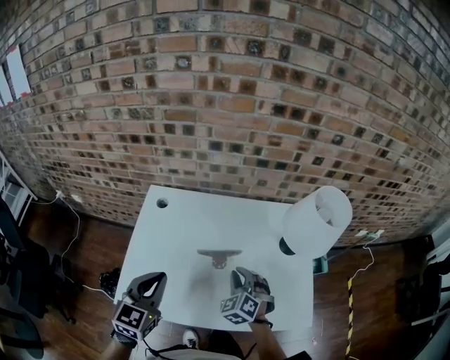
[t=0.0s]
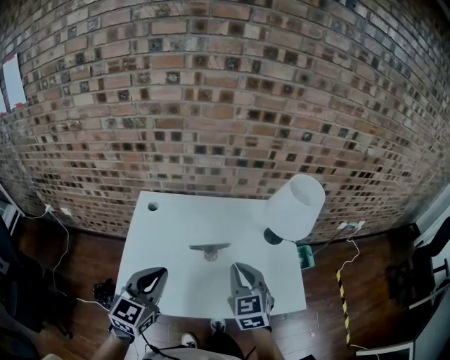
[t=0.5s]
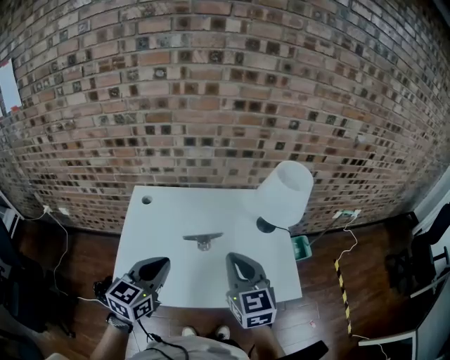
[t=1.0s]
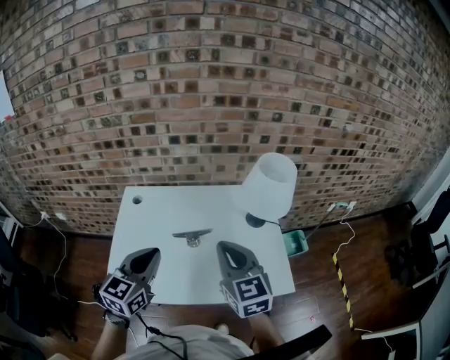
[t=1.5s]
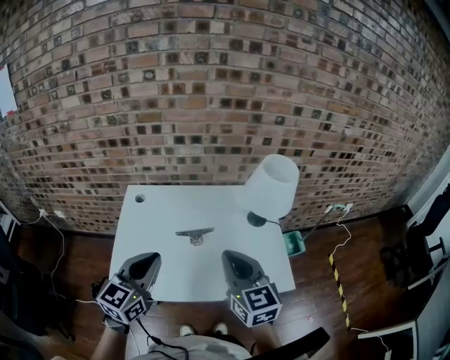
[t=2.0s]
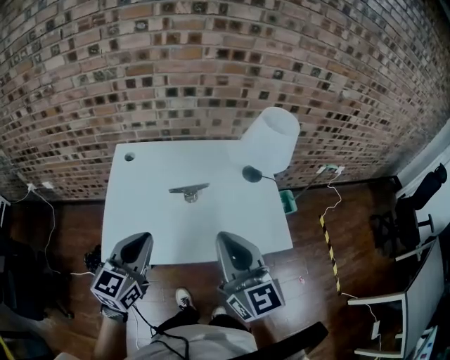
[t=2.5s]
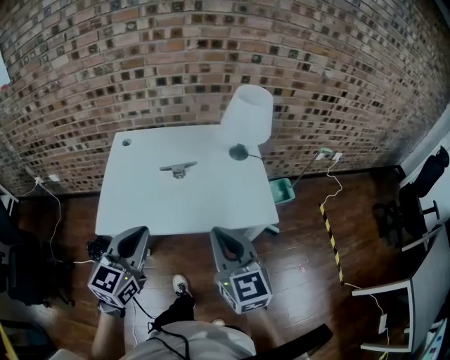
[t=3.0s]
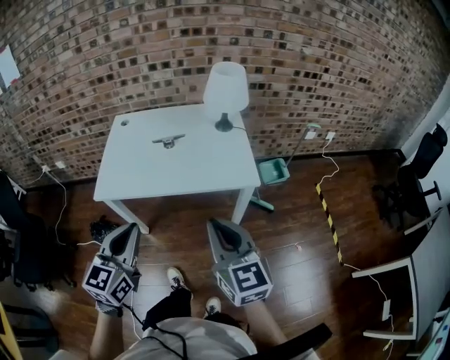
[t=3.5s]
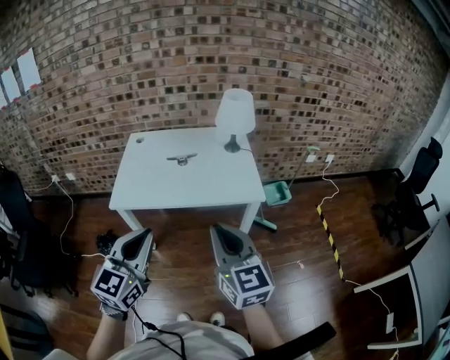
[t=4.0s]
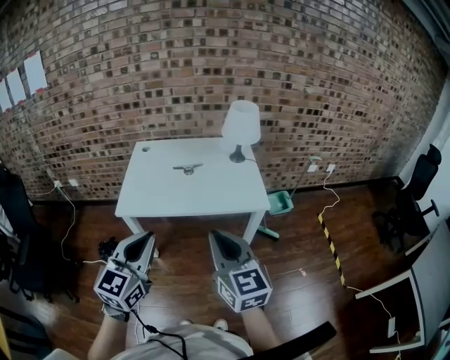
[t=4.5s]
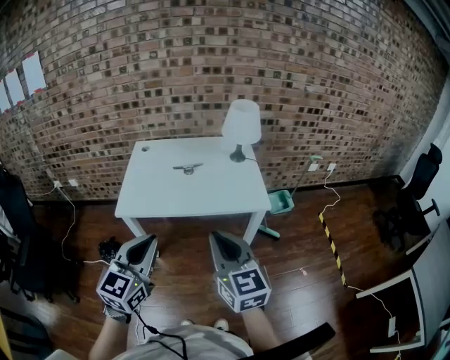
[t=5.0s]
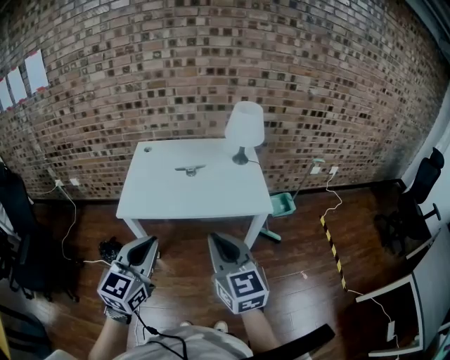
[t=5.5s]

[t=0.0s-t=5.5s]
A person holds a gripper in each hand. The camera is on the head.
t=0.0s to t=2.0s: The left gripper is displaced upward, backward and to the right by about 10 cm. The right gripper moves upward and backward, approximately 25 cm, and tilts its fingers some 30 degrees upward.
t=2.0s to t=3.5s: Both grippers travel together backward, approximately 30 cm.
t=3.5s to t=5.5s: The right gripper moves to the left, some 10 cm. The left gripper changes place by approximately 5 cm.

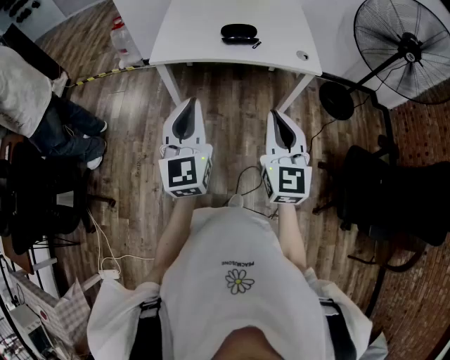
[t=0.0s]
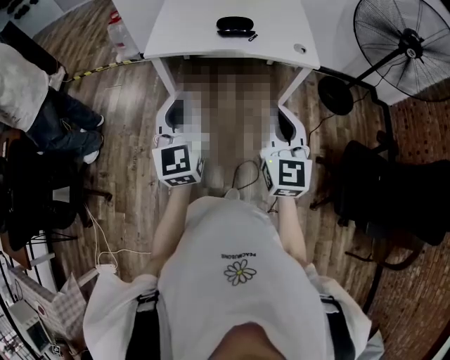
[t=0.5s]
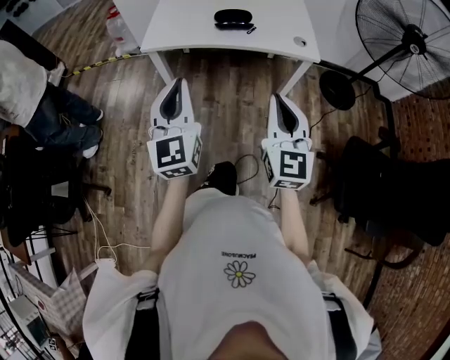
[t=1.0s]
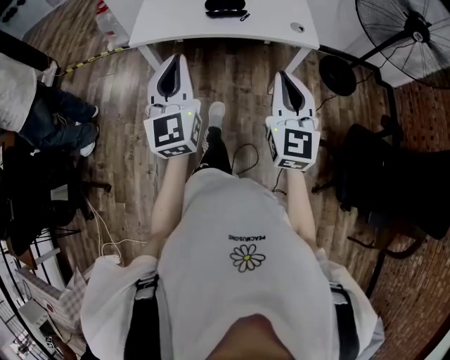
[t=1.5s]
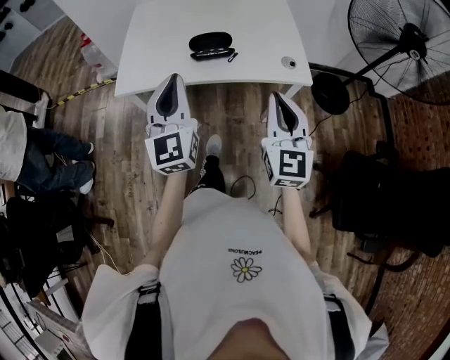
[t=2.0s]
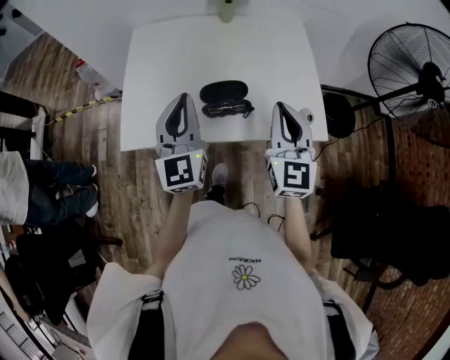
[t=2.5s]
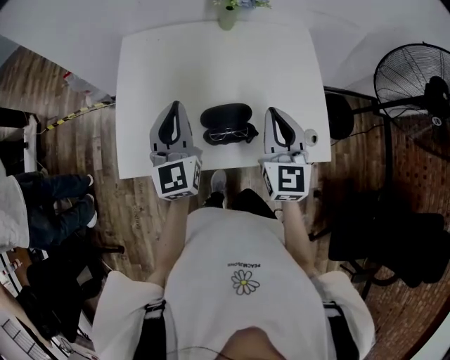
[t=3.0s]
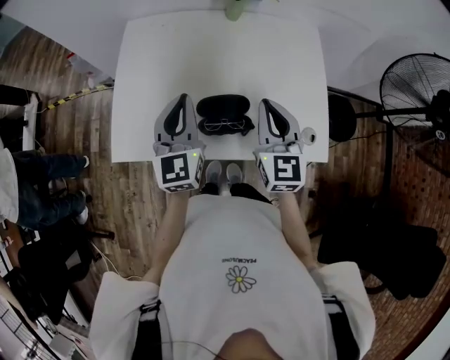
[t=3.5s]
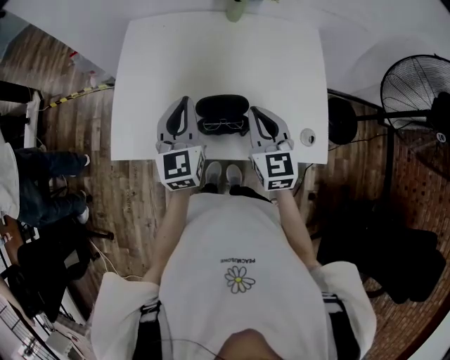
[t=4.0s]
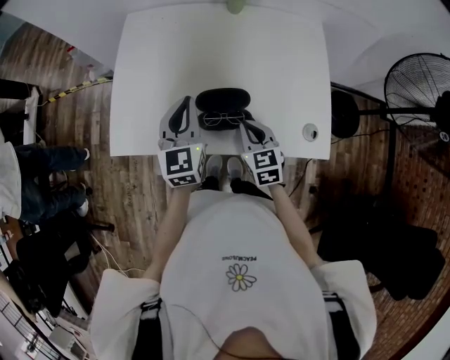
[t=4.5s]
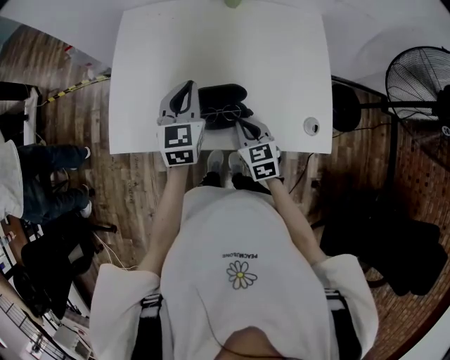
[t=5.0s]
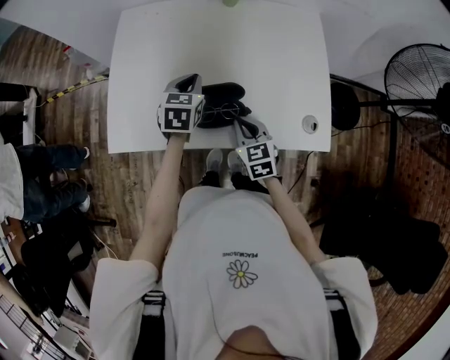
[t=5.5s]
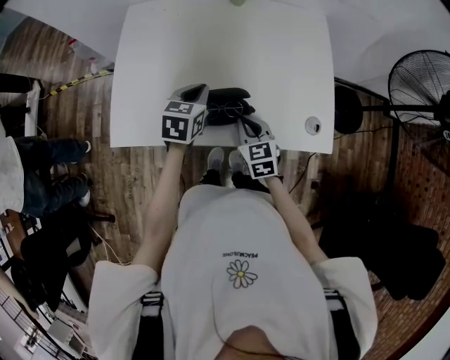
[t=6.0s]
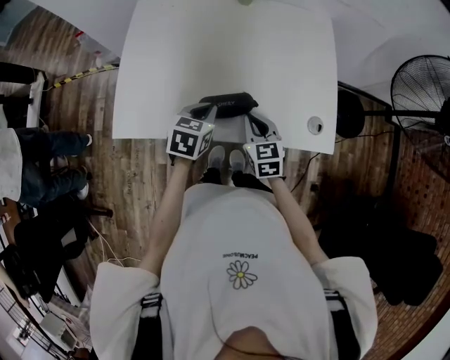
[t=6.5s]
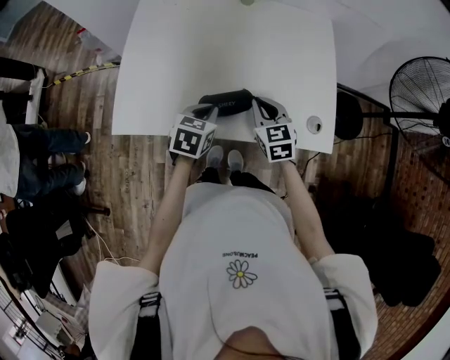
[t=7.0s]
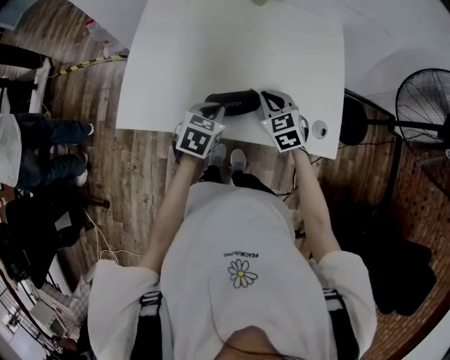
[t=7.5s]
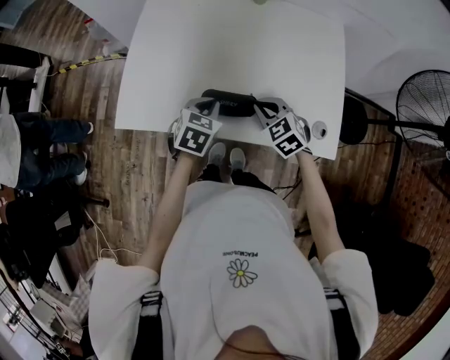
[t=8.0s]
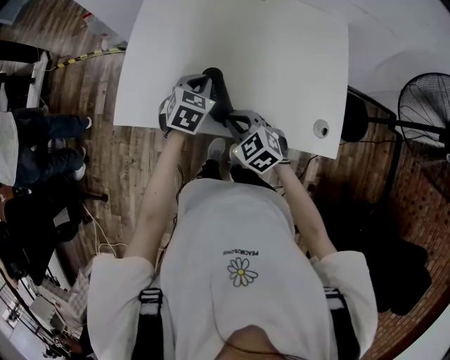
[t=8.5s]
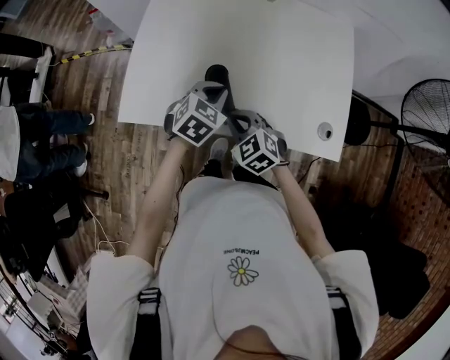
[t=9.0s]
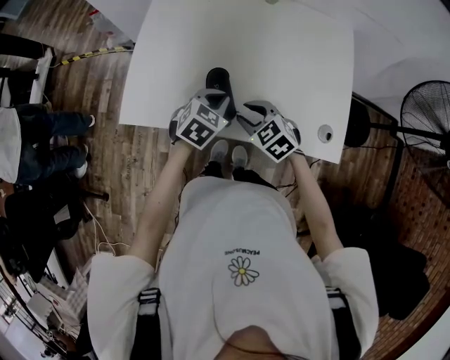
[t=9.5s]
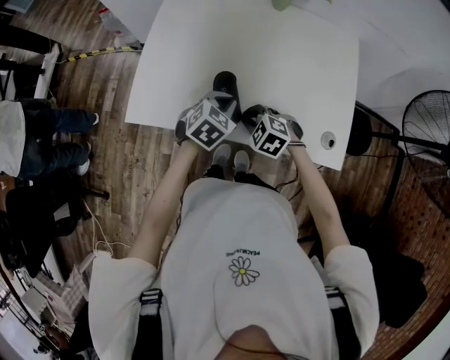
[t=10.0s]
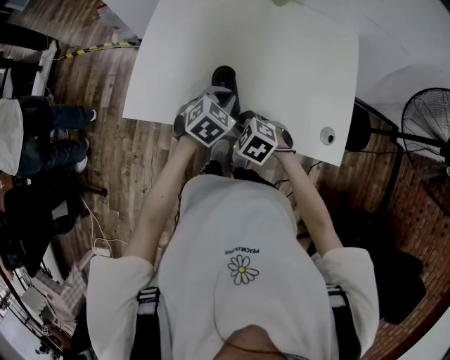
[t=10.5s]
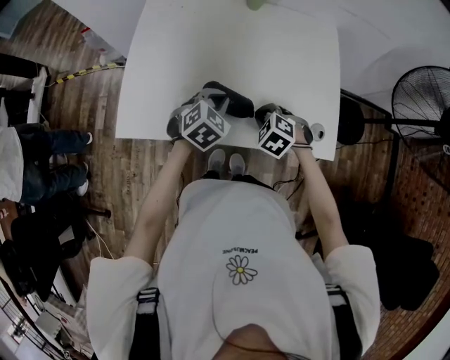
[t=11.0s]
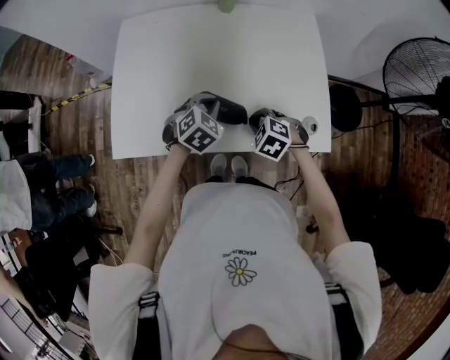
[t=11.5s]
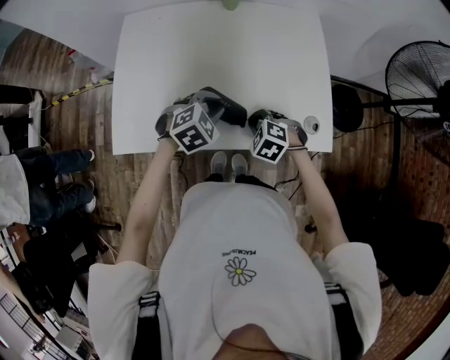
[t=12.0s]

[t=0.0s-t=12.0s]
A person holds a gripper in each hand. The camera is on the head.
t=0.0s to t=2.0s: The right gripper shifts about 25 cm forward and to the right. The left gripper moves forward, roughly 25 cm.
t=2.0s to t=4.0s: Both grippers move forward, approximately 30 cm. The right gripper changes its angle by about 20 degrees.
t=4.0s to t=6.0s: The two grippers go about 10 cm downward. The left gripper angles its fingers downward, by roughly 30 degrees.
t=6.0s to t=8.0s: The left gripper is displaced backward by about 5 cm; the right gripper turns by some 30 degrees.
t=8.0s to t=10.0s: The right gripper moves to the left, some 10 cm, changes its angle by roughly 30 degrees, and opens, then closes again.
t=10.0s to t=12.0s: The left gripper turns by about 30 degrees, while the right gripper shifts roughly 10 cm to the right.

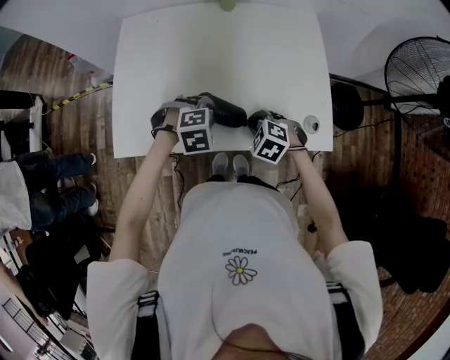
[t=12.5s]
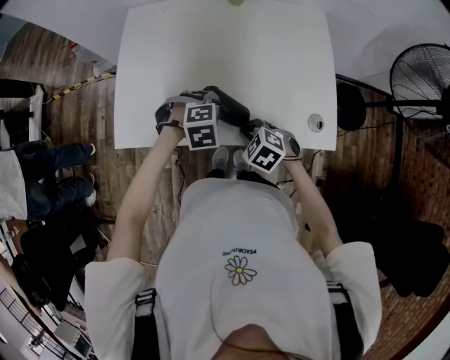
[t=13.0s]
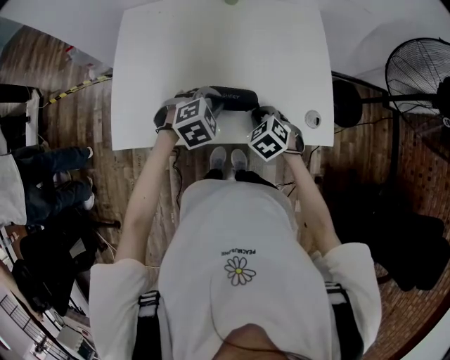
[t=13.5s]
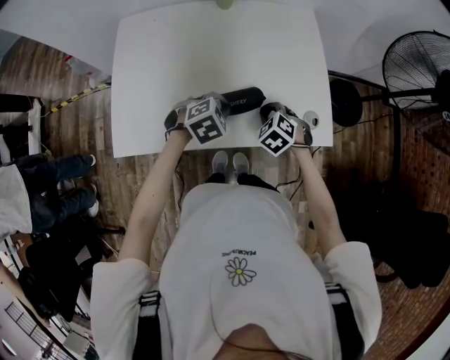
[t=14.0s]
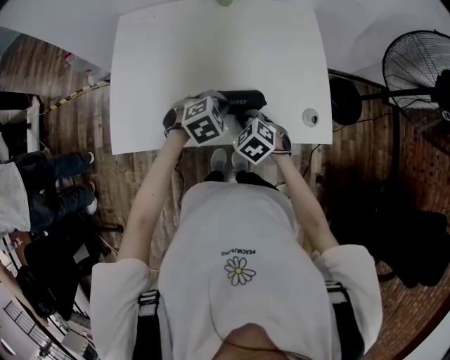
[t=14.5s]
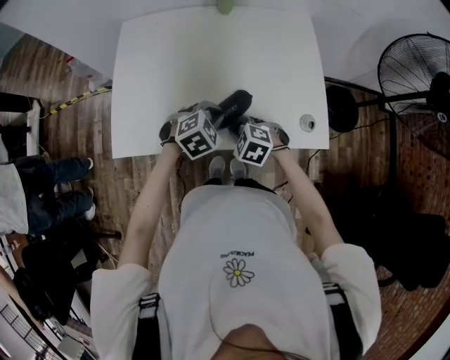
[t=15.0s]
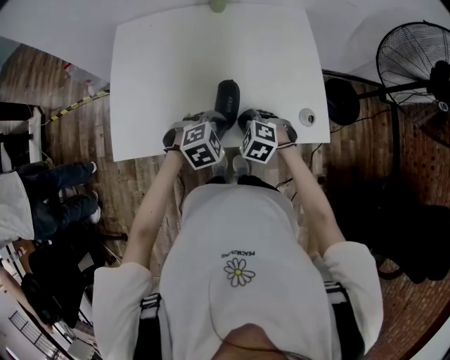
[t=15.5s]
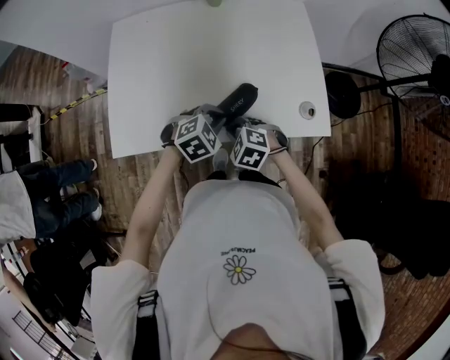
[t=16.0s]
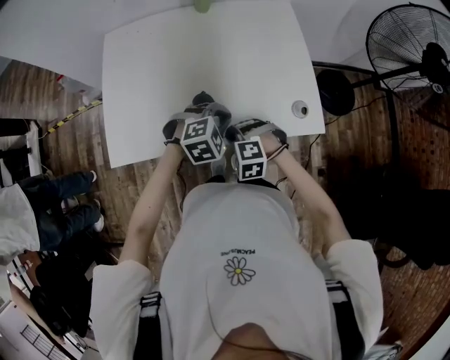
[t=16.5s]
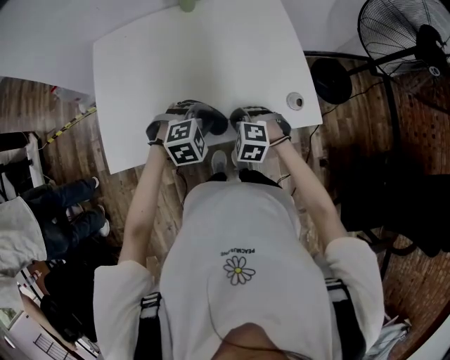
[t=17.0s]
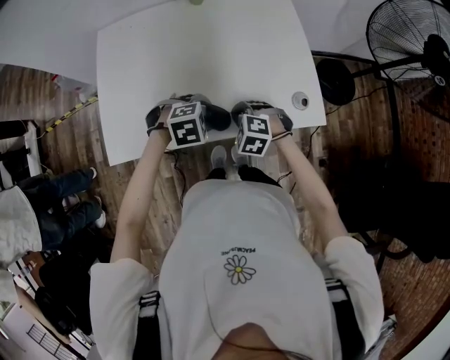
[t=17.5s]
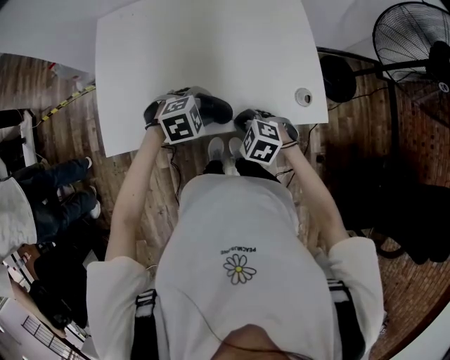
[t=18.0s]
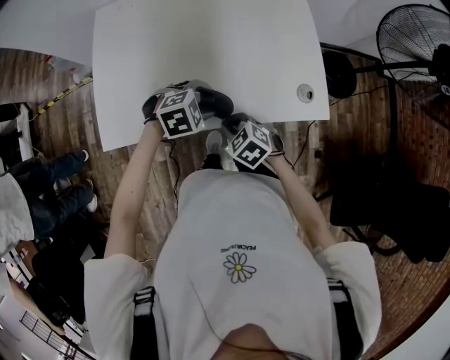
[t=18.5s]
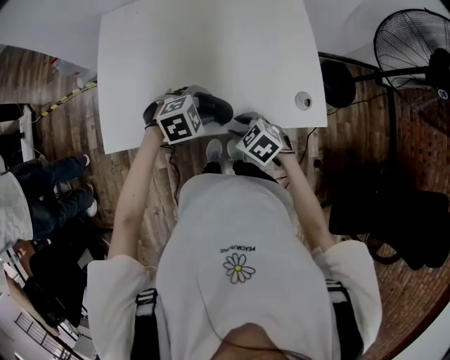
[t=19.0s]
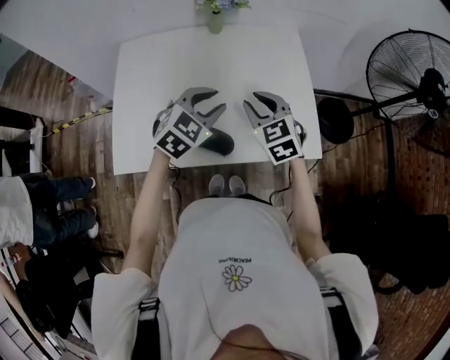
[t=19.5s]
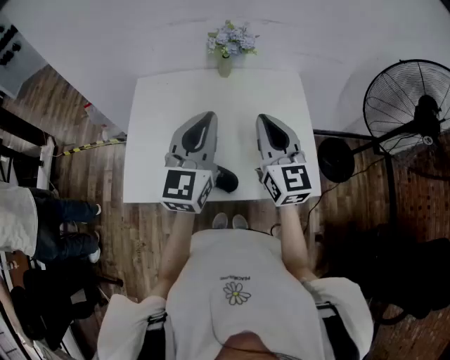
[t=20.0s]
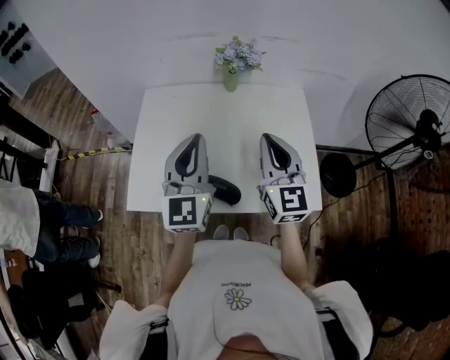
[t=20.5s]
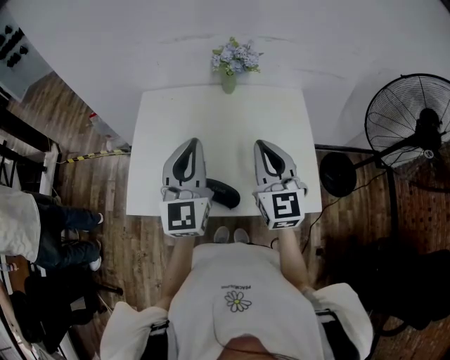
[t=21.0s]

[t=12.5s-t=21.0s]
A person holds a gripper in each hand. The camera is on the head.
t=12.5s to t=14.5s: The left gripper rotates approximately 20 degrees. The right gripper swings forward and backward, approximately 10 cm each way, with 2 reversals.
t=14.5s to t=16.5s: The left gripper shifts by roughly 5 cm. The right gripper heads backward, covering roughly 5 cm, and turns by about 40 degrees.
t=16.5s to t=19.0s: The right gripper rotates around the line of its fingers by approximately 40 degrees, clockwise from behind, and opens up. Meanwhile the left gripper ends up about 5 cm from where it was, and opens.
t=19.0s to t=21.0s: Both grippers travel together upward, about 30 cm. The right gripper angles its fingers upward, by approximately 60 degrees, and closes its fingers. The left gripper tilts its fingers roughly 70 degrees upward, and closes its fingers.
